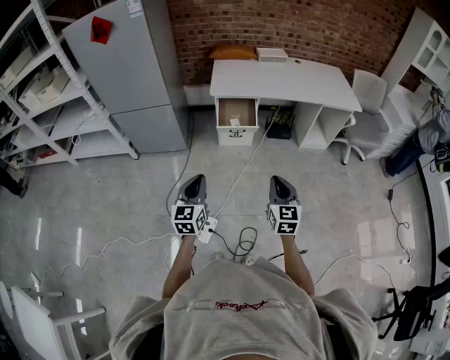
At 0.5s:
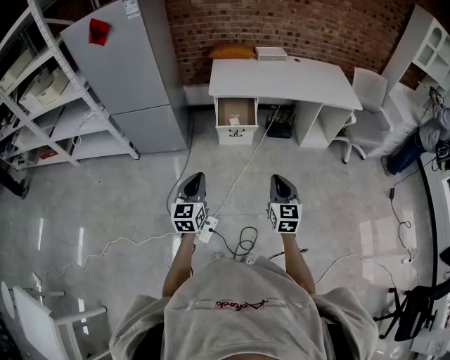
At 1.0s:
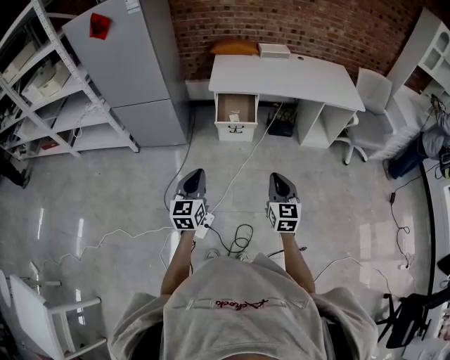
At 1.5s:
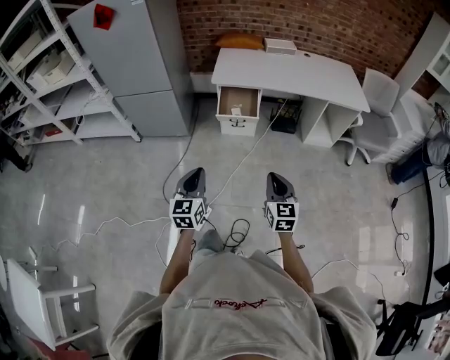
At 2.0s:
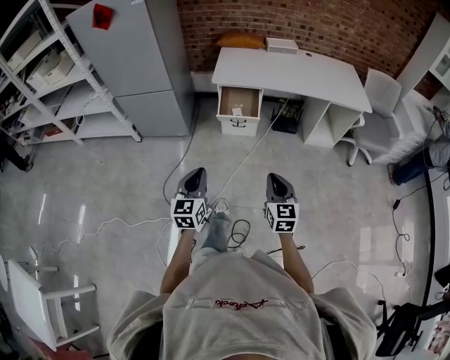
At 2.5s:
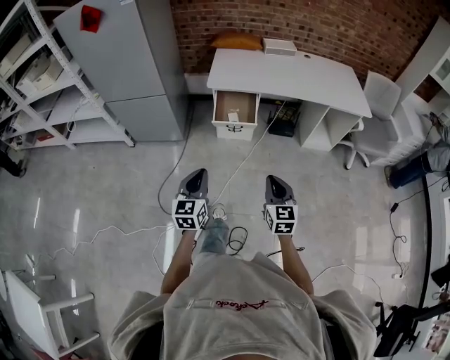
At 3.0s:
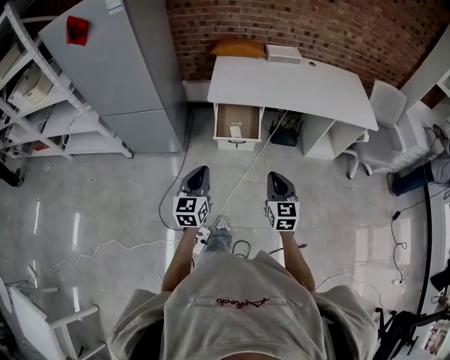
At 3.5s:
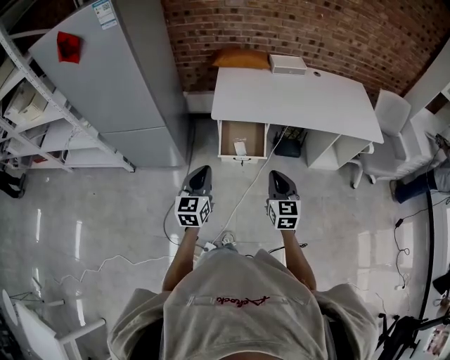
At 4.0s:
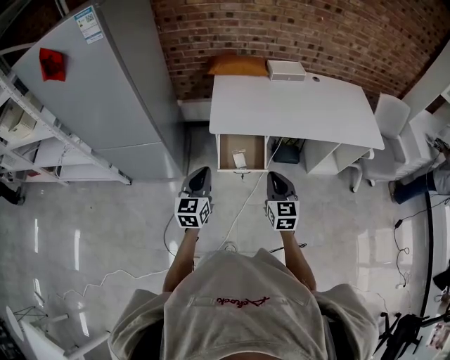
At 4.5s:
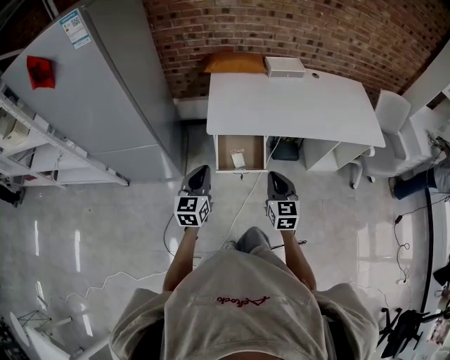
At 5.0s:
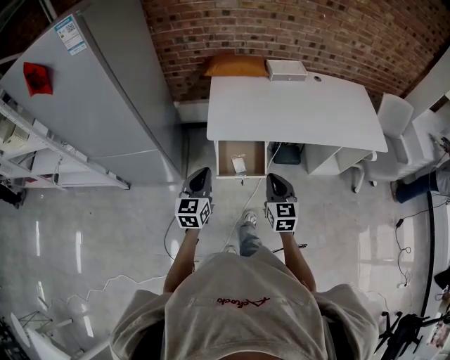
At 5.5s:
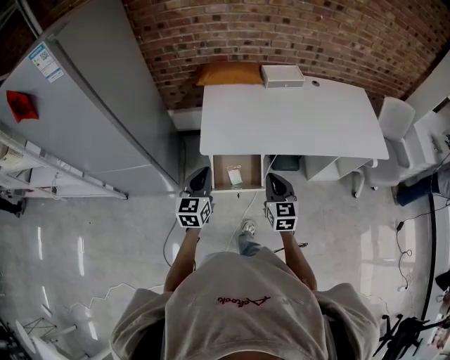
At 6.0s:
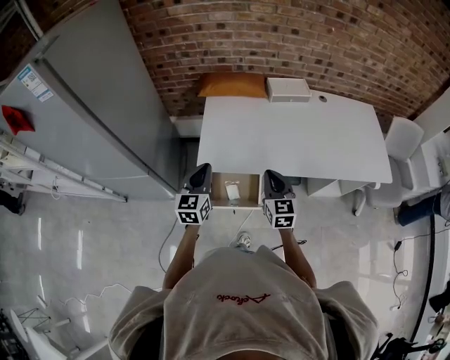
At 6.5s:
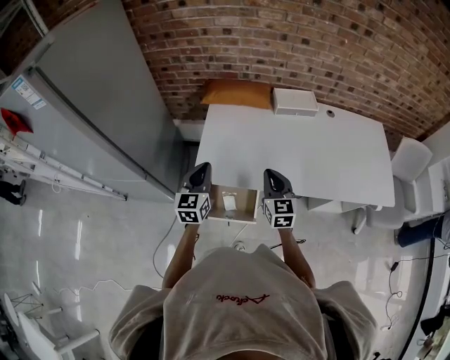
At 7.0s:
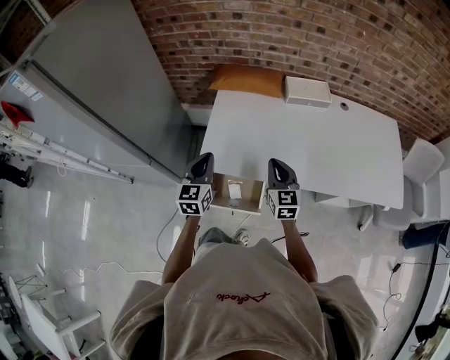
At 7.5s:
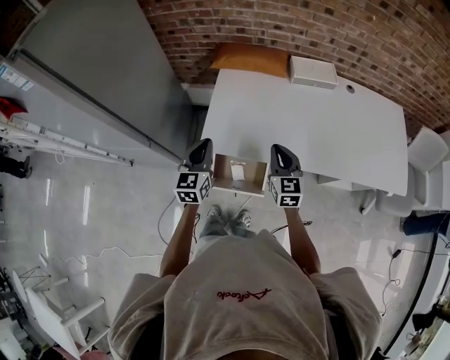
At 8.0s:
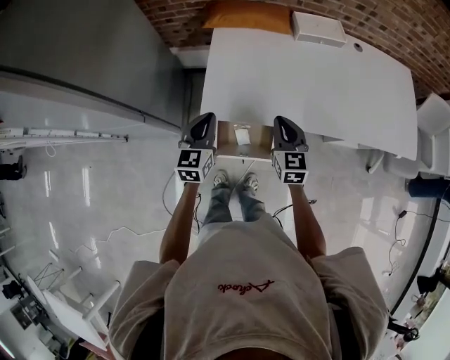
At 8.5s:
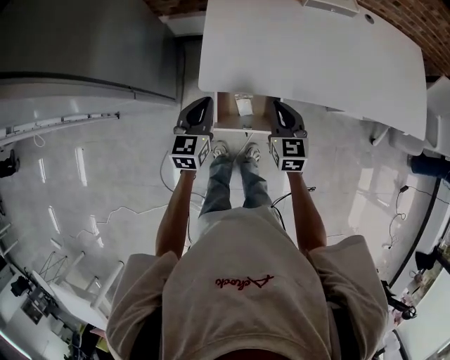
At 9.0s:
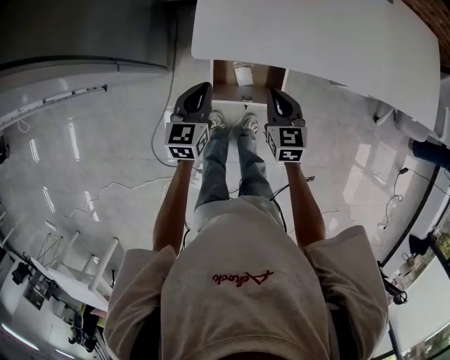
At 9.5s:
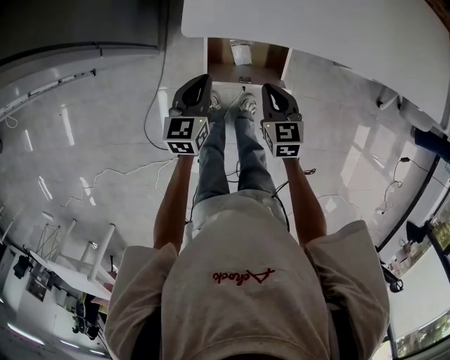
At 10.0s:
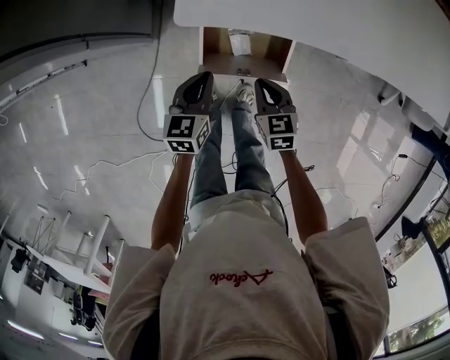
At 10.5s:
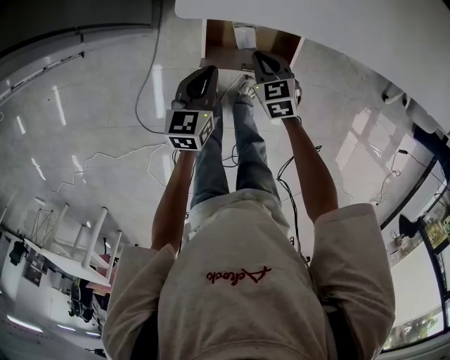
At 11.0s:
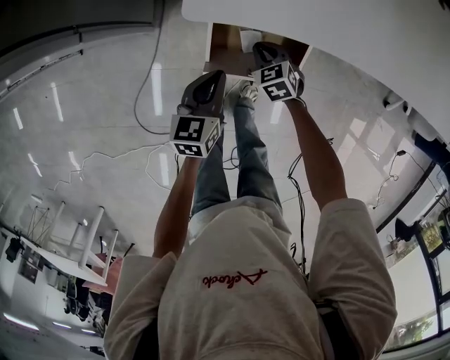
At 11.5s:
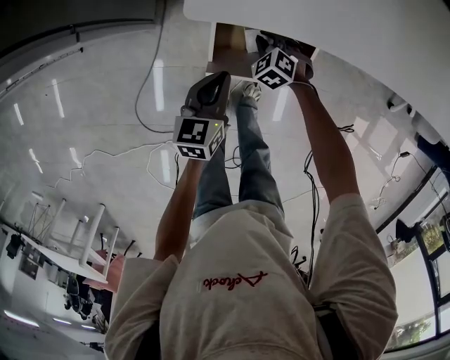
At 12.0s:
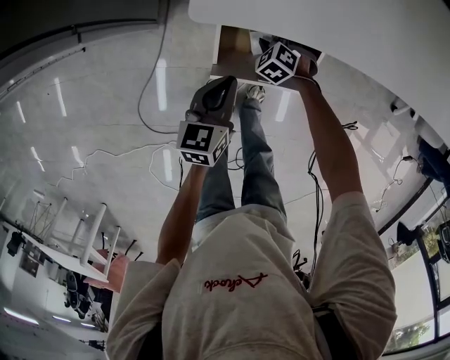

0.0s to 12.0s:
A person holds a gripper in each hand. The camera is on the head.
0.0s to 2.0s: The left gripper moves to the right, some 5 cm. Meanwhile the right gripper moves roughly 5 cm.
2.0s to 4.0s: Both grippers move forward, some 40 cm.
4.0s to 6.0s: Both grippers travel together forward, some 25 cm.
6.0s to 8.0s: The right gripper moves forward and downward, approximately 10 cm. Meanwhile the left gripper is displaced downward and forward by about 10 cm.
8.0s to 10.0s: Both grippers travel together downward and backward, roughly 25 cm. The left gripper swivels roughly 20 degrees. Meanwhile the right gripper changes its angle by roughly 30 degrees.
10.0s to 12.0s: The right gripper travels downward and forward by roughly 25 cm, twists approximately 50 degrees counterclockwise, seen from behind, and opens up.

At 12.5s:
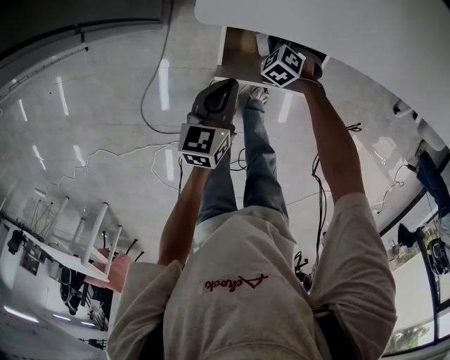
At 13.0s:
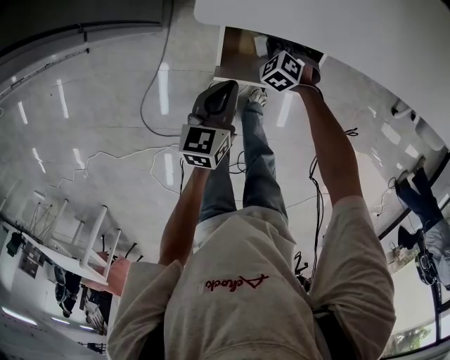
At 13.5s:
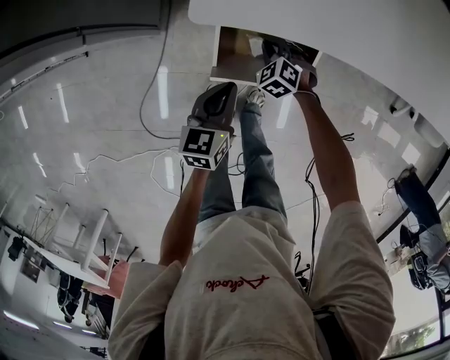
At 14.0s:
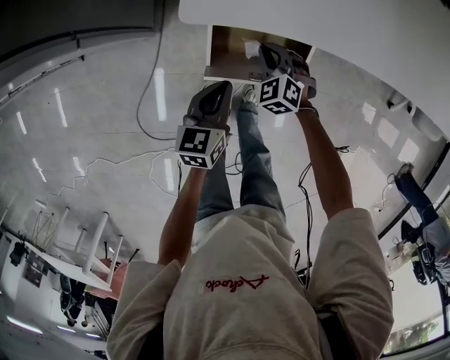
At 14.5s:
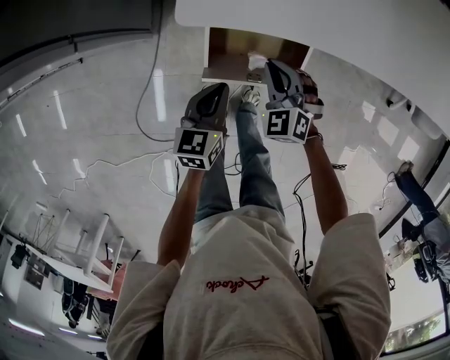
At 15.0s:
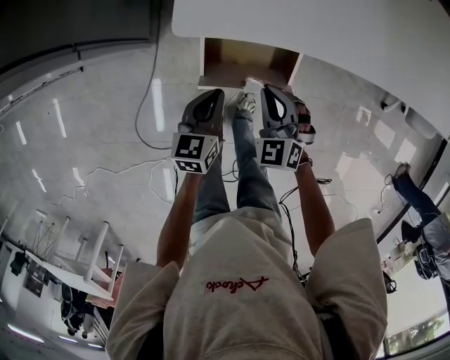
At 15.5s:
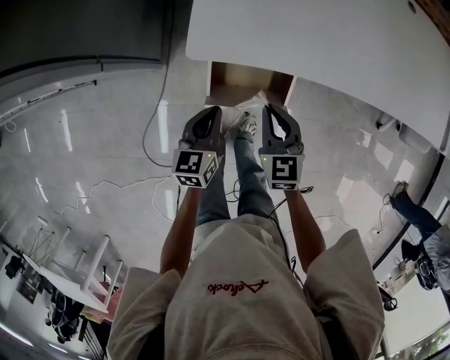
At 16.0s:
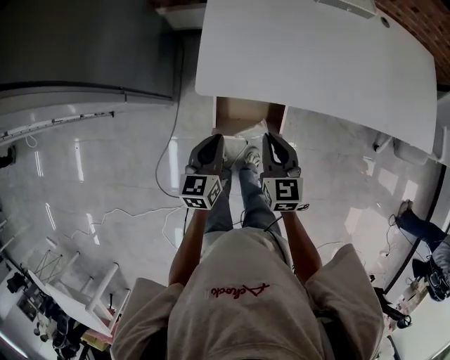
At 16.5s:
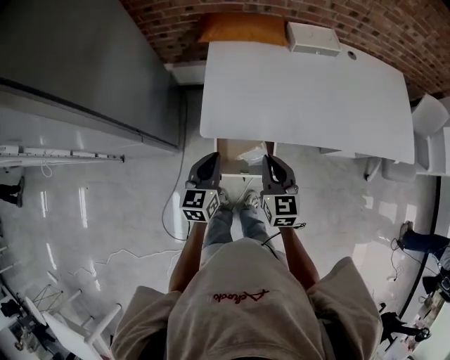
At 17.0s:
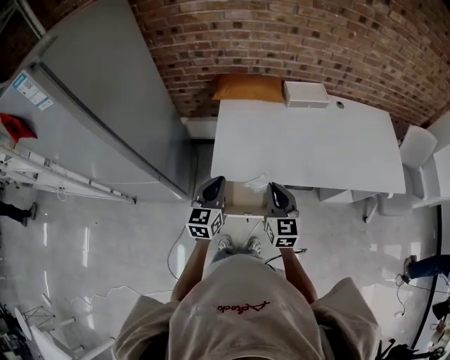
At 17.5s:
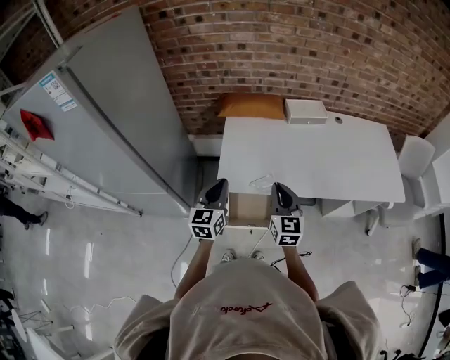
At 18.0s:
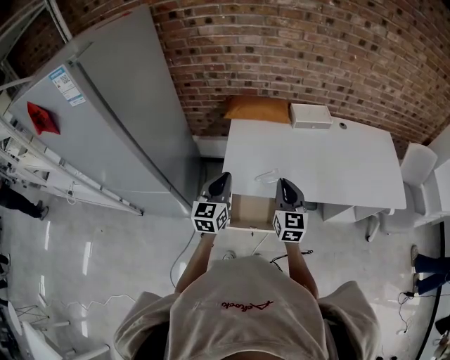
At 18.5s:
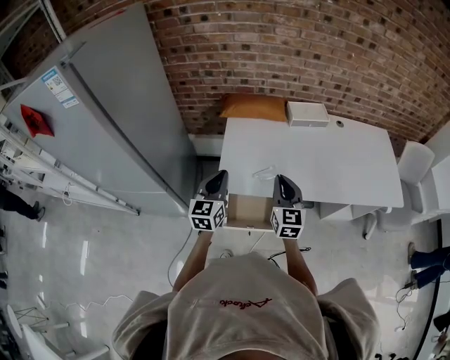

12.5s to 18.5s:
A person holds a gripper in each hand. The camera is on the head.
12.5s to 14.5s: The right gripper heads upward, covering roughly 15 cm, and changes its angle by approximately 30 degrees.
14.5s to 16.5s: The grippers both shift upward by roughly 25 cm. The right gripper rolls clockwise, seen from behind, by about 40 degrees.
16.5s to 18.5s: The grippers both shift upward by roughly 15 cm.

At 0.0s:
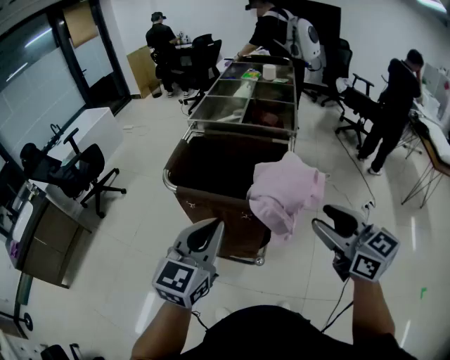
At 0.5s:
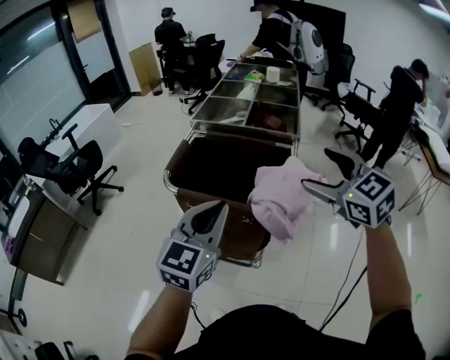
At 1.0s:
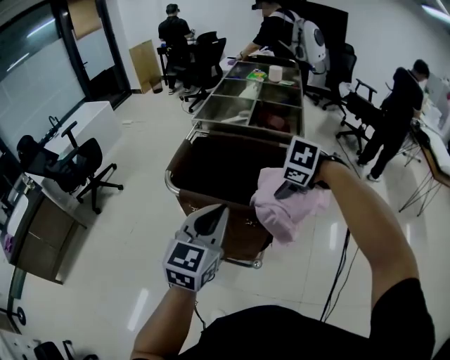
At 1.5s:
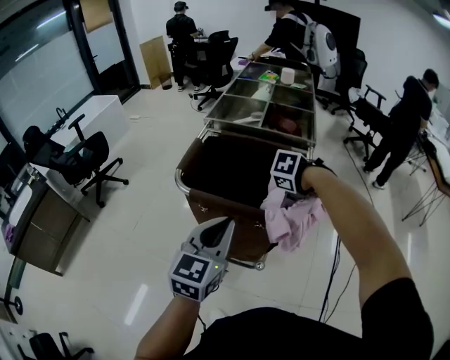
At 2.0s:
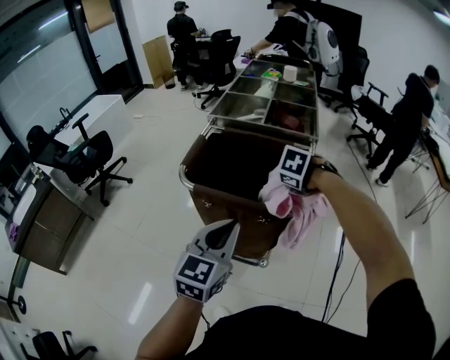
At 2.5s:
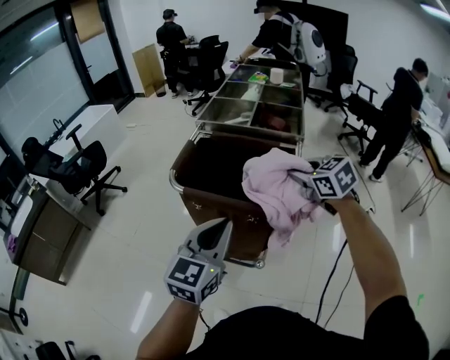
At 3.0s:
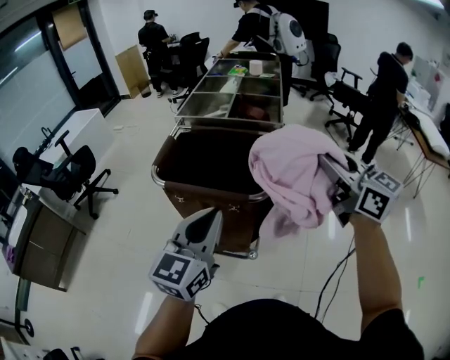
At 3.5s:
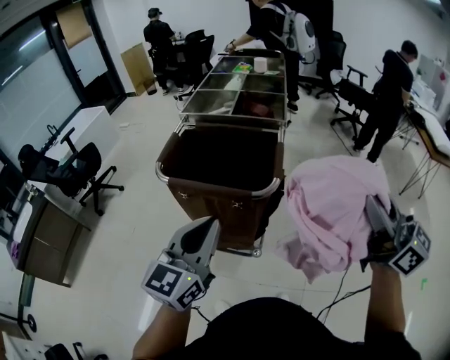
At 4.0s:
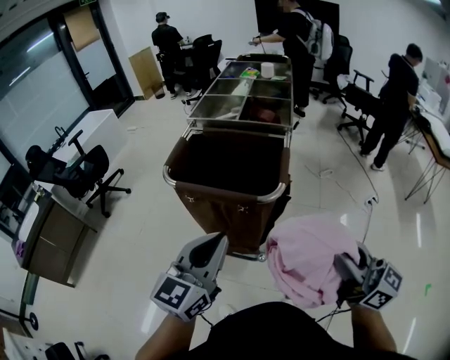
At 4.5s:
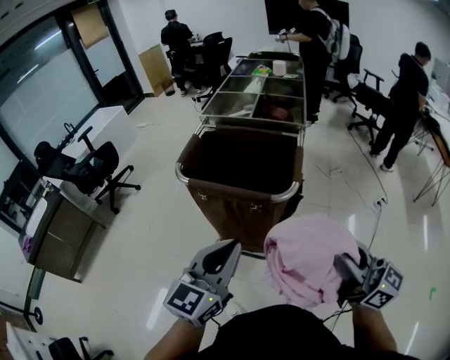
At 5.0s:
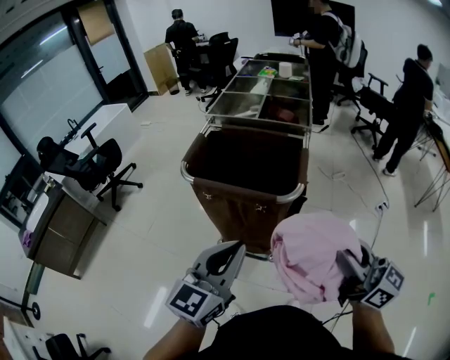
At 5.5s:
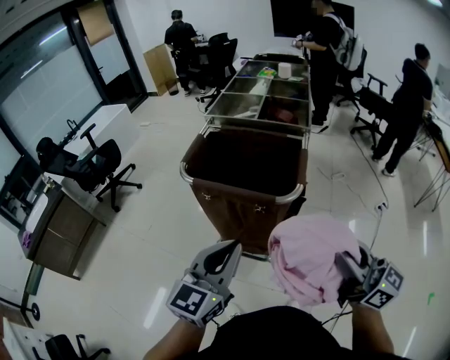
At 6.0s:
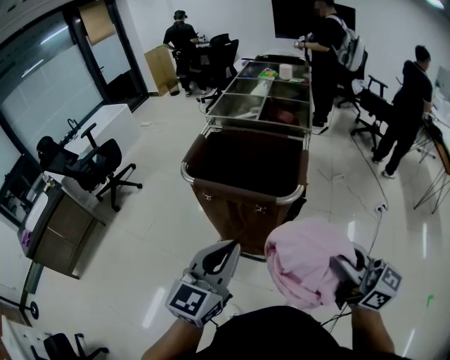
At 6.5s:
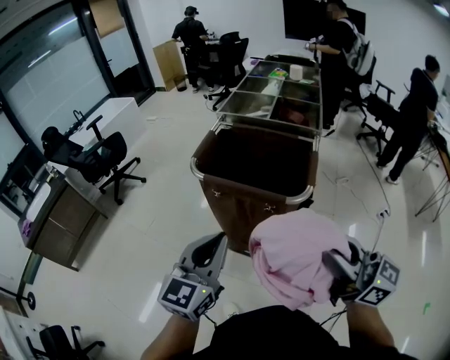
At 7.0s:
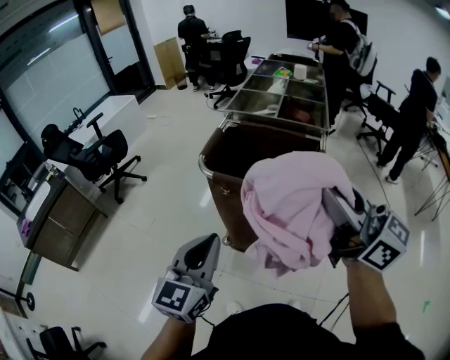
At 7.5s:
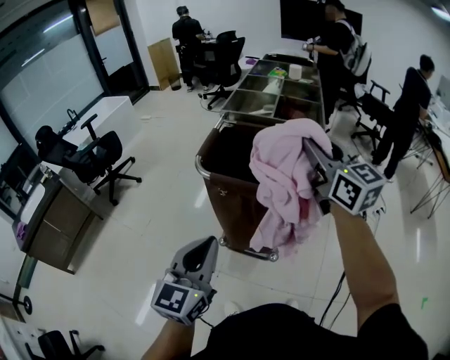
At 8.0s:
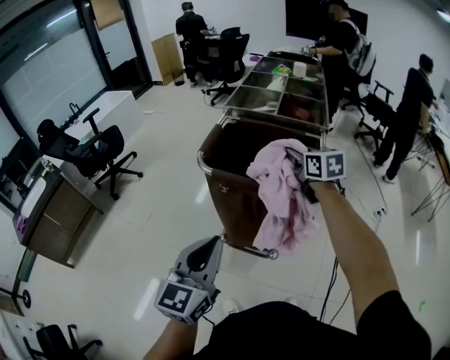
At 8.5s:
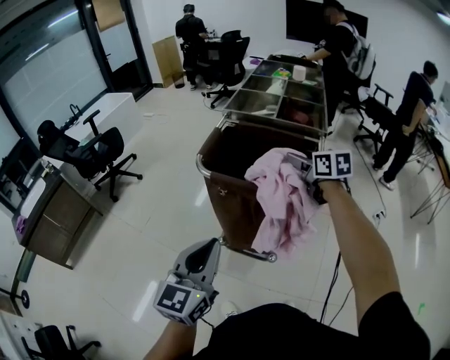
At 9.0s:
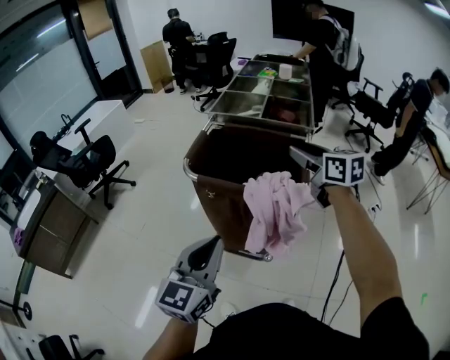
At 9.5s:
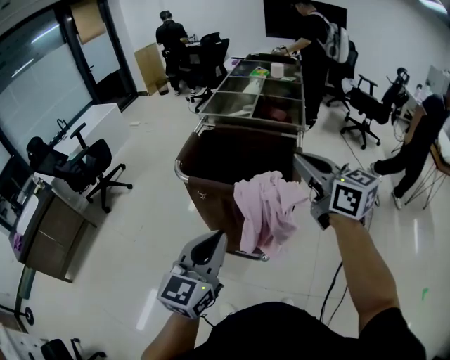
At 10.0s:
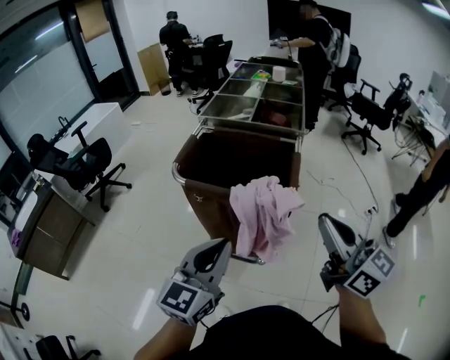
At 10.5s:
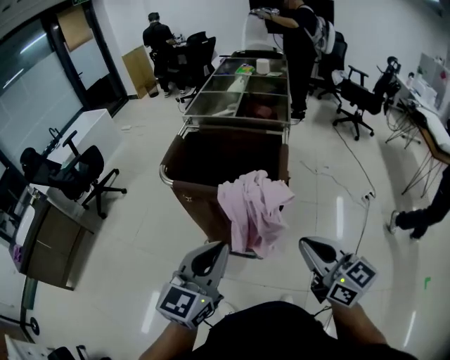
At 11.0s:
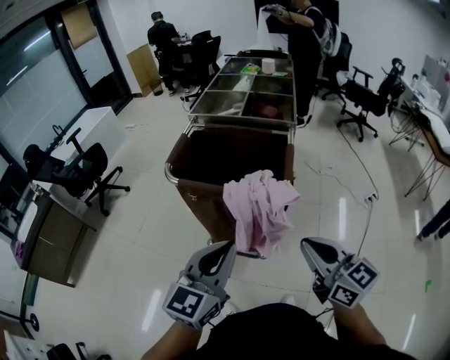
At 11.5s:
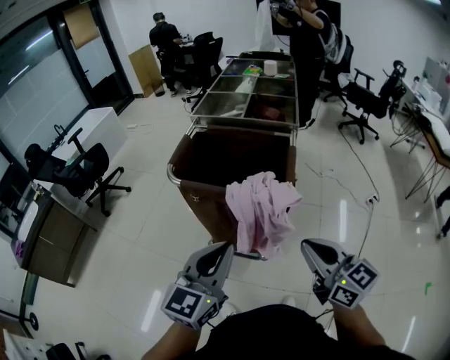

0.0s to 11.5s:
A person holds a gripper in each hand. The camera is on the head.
0.0s to 2.0s: The right gripper changes place by roughly 30 cm, tilts its fingers roughly 70 degrees downward, and opens and closes again.
2.0s to 4.0s: The left gripper moves approximately 10 cm. The right gripper moves approximately 40 cm, and points its fingers some 90 degrees further upward.
4.0s to 6.0s: The right gripper shifts by approximately 5 cm.
6.0s to 7.5s: The right gripper is displaced forward by roughly 25 cm, and turns by some 30 degrees. The left gripper travels to the left by approximately 10 cm.
7.5s to 9.5s: The left gripper travels to the right by some 10 cm. Meanwhile the right gripper reaches roughly 15 cm downward, then returns.
9.5s to 11.5s: The right gripper travels backward and downward by roughly 20 cm.
